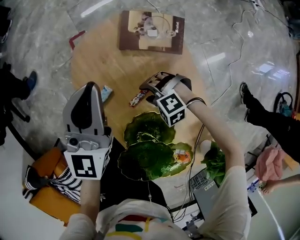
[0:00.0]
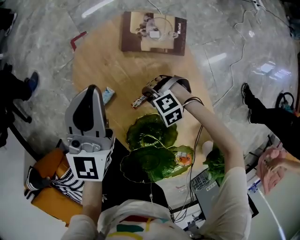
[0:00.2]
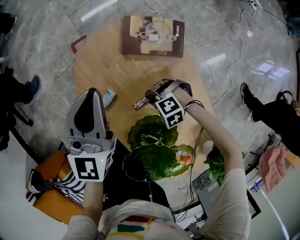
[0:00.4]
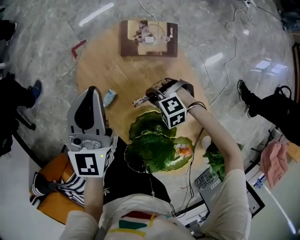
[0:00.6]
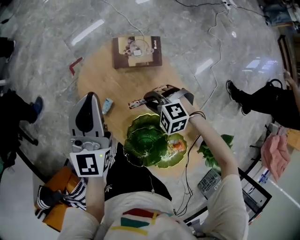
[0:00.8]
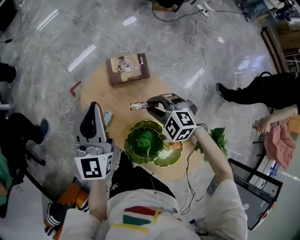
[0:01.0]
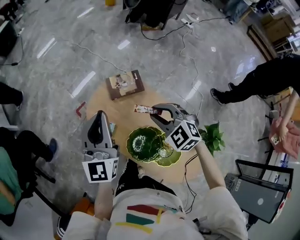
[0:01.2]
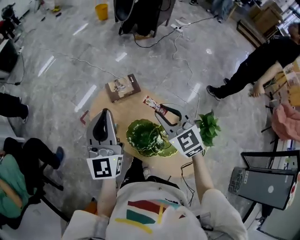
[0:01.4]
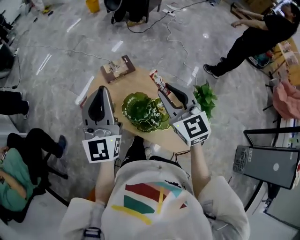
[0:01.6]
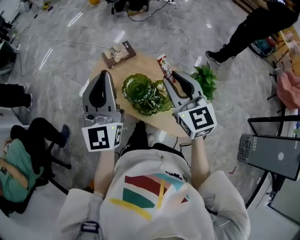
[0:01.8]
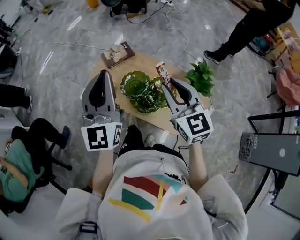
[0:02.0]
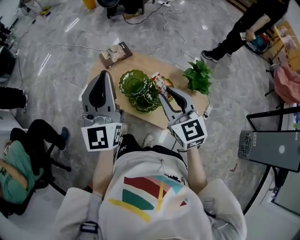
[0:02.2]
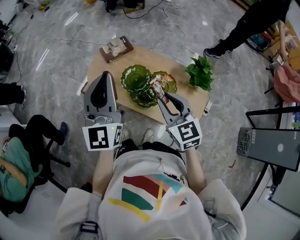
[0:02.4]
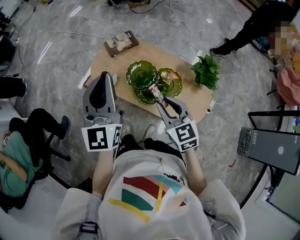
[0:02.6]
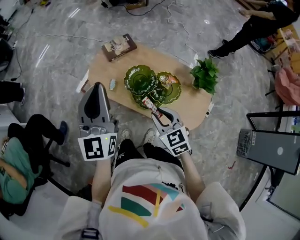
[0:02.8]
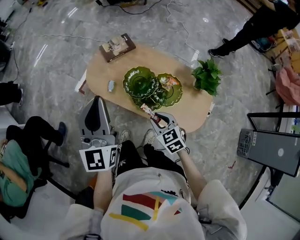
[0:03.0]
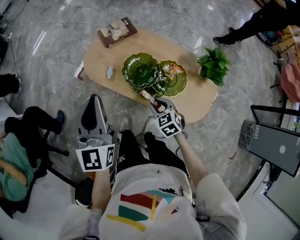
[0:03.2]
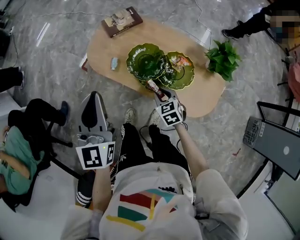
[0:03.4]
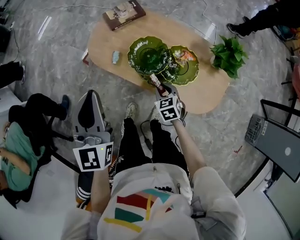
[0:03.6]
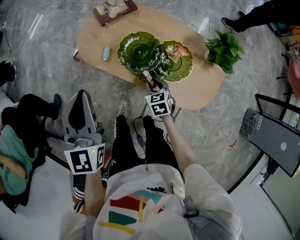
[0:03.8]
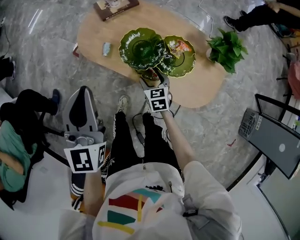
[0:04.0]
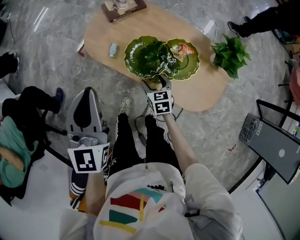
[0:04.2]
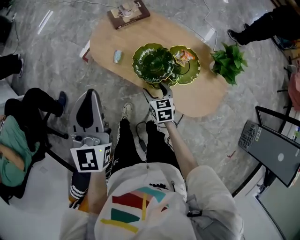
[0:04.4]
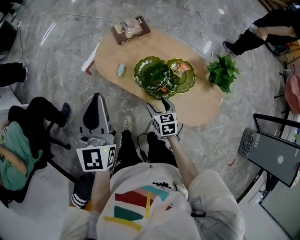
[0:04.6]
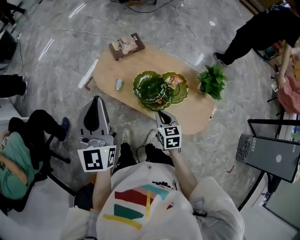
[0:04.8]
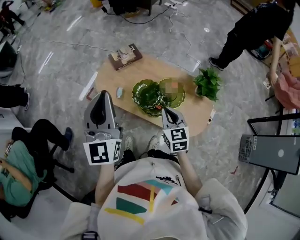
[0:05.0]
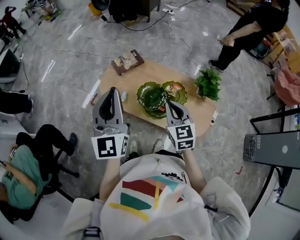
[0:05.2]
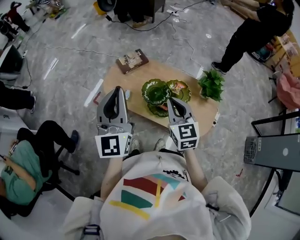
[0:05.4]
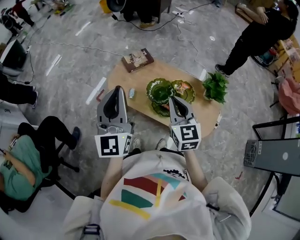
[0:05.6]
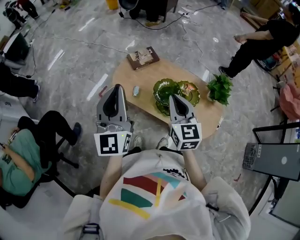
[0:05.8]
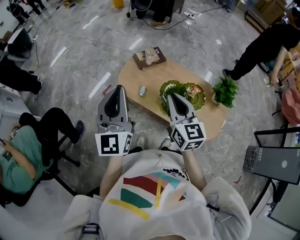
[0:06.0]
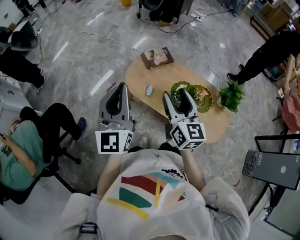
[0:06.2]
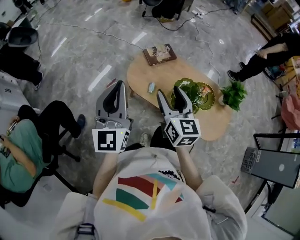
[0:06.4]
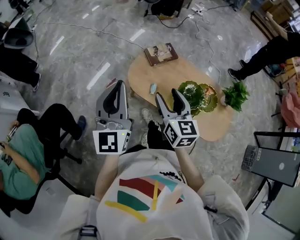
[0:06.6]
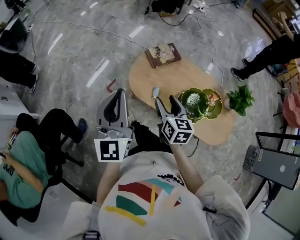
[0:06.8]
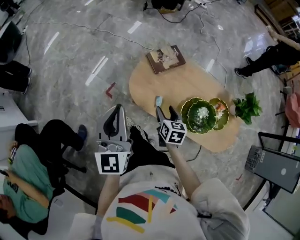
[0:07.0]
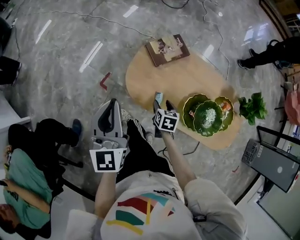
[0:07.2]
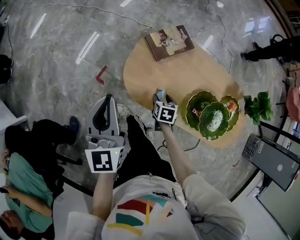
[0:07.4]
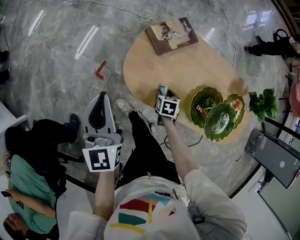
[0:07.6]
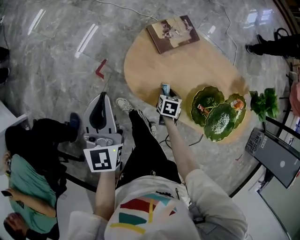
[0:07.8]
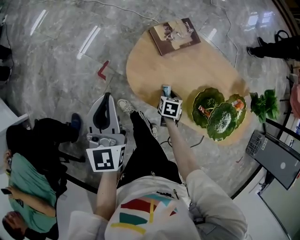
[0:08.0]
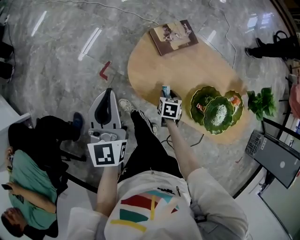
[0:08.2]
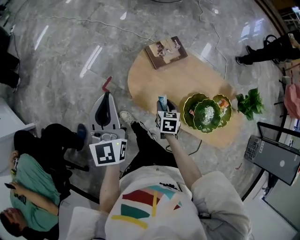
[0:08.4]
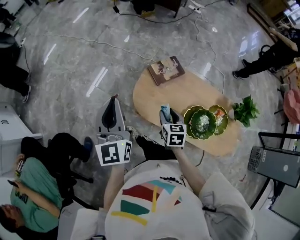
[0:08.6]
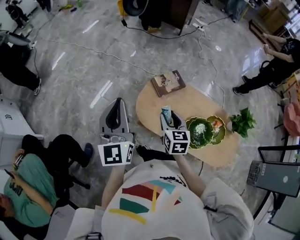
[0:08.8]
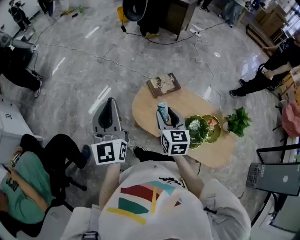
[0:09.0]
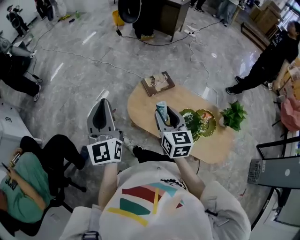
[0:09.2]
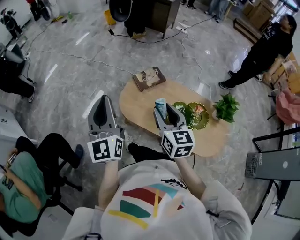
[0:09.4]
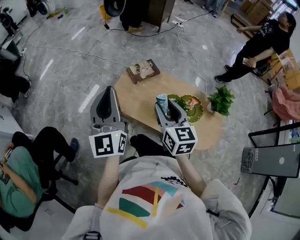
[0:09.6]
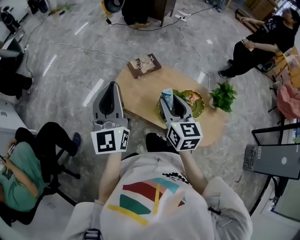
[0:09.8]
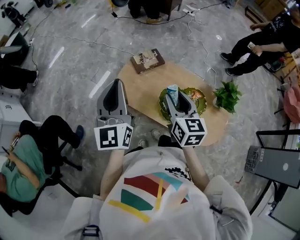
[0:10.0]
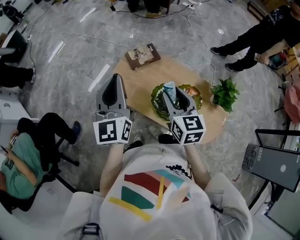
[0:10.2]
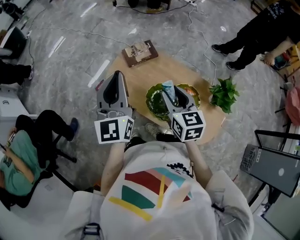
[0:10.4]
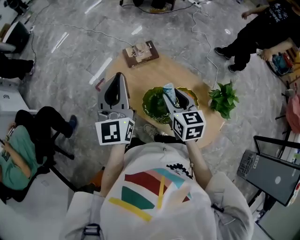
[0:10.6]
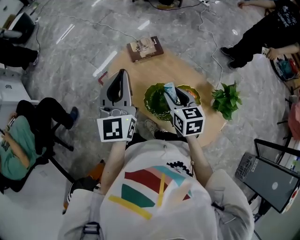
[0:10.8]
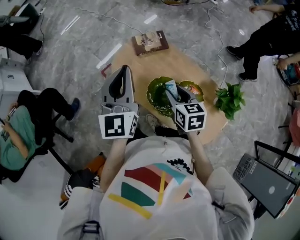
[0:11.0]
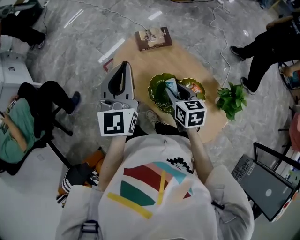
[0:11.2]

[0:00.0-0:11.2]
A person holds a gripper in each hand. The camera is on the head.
0:00.0 to 0:01.6: The right gripper shifts roughly 50 cm upward, angles its fingers upward, by some 50 degrees, and closes. The left gripper travels upward by some 35 cm, and changes its angle by some 30 degrees.
0:01.6 to 0:03.2: The right gripper is displaced downward and backward by roughly 35 cm, and points its fingers roughly 40 degrees further downward. Meanwhile the left gripper heads downward, backward and to the left, covering about 15 cm.
0:03.2 to 0:04.8: The two grippers go roughly 5 cm upward. The right gripper swivels some 30 degrees, and opens, then closes again.
0:04.8 to 0:06.4: The right gripper shifts about 30 cm upward and to the left, changes its angle by some 30 degrees, and opens, while the left gripper goes some 15 cm to the left.
0:06.4 to 0:08.0: The right gripper is displaced downward by about 50 cm, and tilts its fingers roughly 60 degrees downward; the left gripper is displaced downward and forward by roughly 35 cm.
0:08.0 to 0:09.6: The left gripper shifts approximately 35 cm upward, backward and to the right, and changes its angle by approximately 20 degrees; the right gripper shifts roughly 50 cm upward, and tips its fingers upward by approximately 50 degrees.
0:09.6 to 0:11.2: The left gripper travels to the right by some 15 cm. Meanwhile the right gripper moves downward and to the right, about 20 cm, and turns by some 30 degrees.

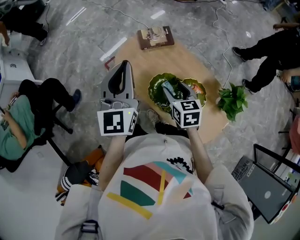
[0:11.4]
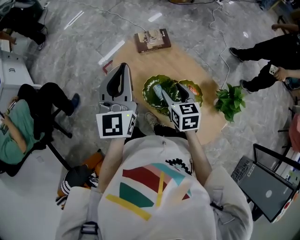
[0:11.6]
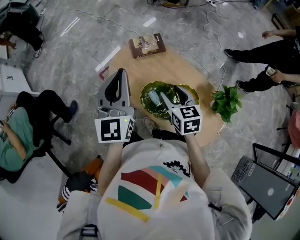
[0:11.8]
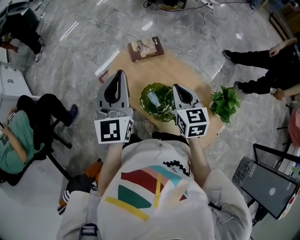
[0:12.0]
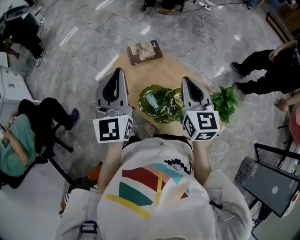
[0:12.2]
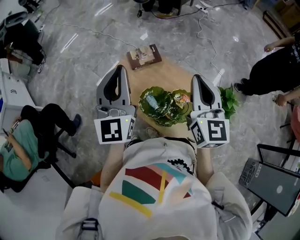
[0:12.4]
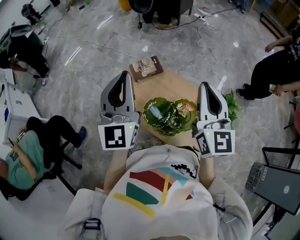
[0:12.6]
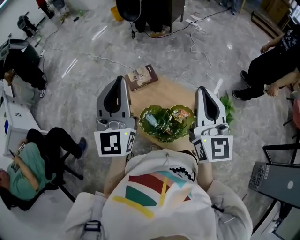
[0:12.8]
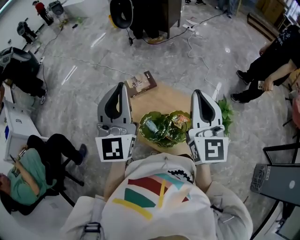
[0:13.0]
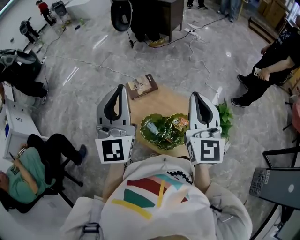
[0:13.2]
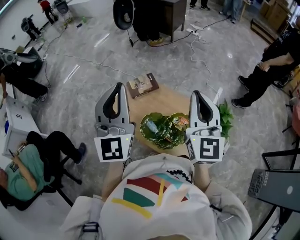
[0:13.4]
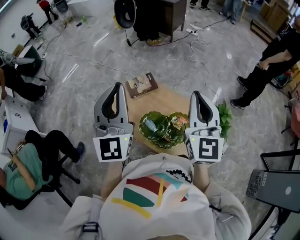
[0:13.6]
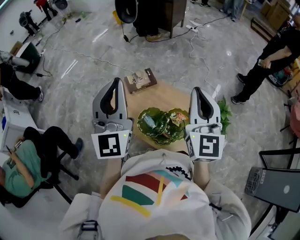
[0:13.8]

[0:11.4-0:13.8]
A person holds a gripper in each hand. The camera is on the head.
0:11.4 to 0:12.6: The right gripper heads upward and to the right, covering approximately 30 cm, points its fingers some 40 degrees further upward, and closes up. The left gripper shifts roughly 10 cm upward and to the right.
0:12.6 to 0:13.8: The grippers move only a little.

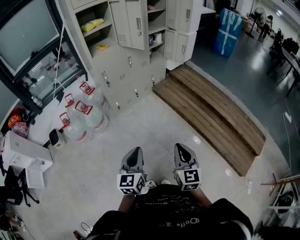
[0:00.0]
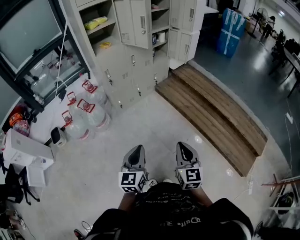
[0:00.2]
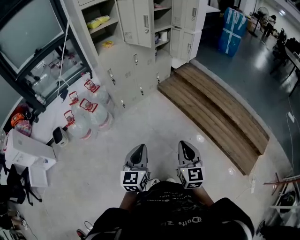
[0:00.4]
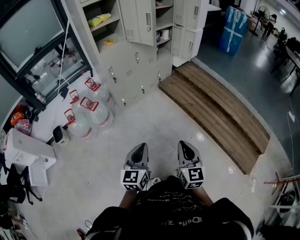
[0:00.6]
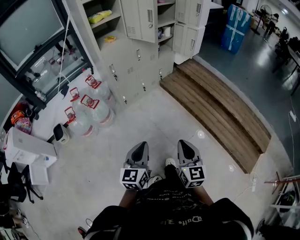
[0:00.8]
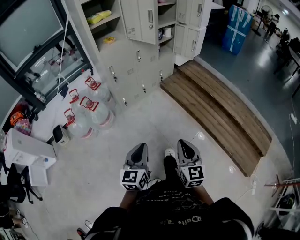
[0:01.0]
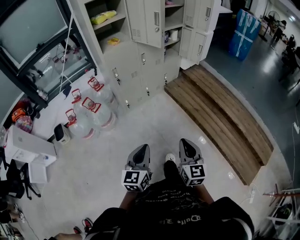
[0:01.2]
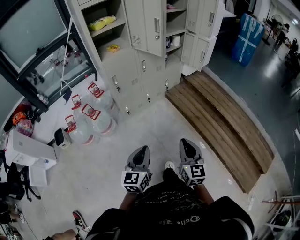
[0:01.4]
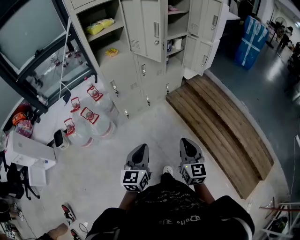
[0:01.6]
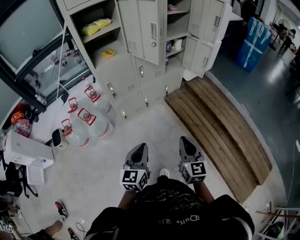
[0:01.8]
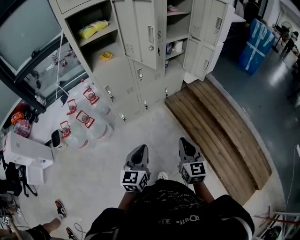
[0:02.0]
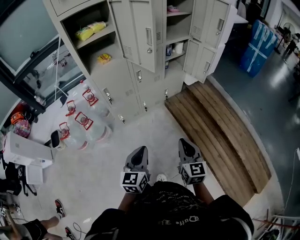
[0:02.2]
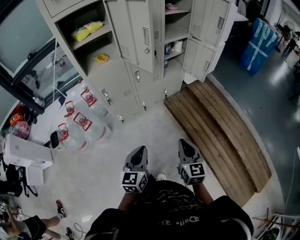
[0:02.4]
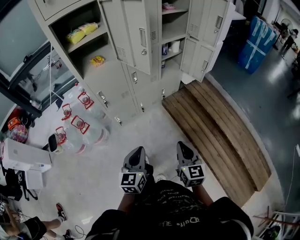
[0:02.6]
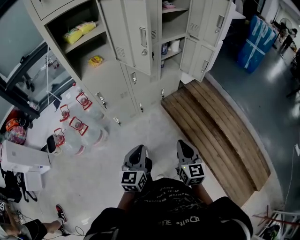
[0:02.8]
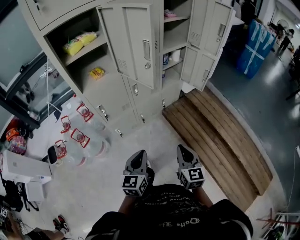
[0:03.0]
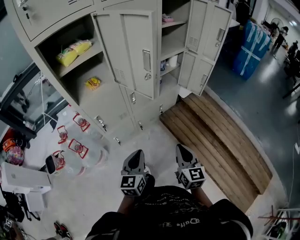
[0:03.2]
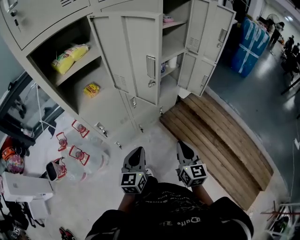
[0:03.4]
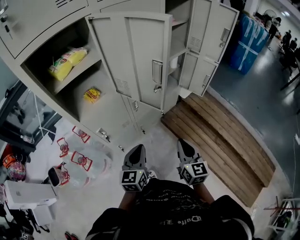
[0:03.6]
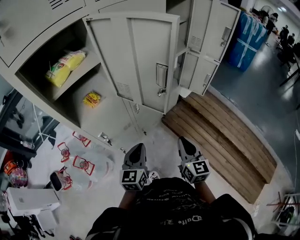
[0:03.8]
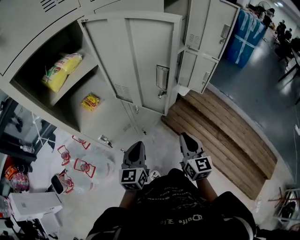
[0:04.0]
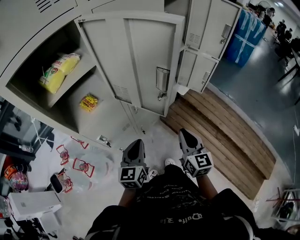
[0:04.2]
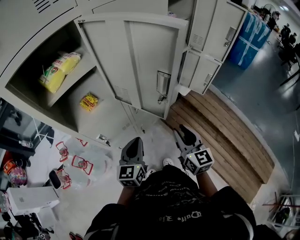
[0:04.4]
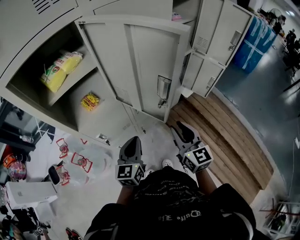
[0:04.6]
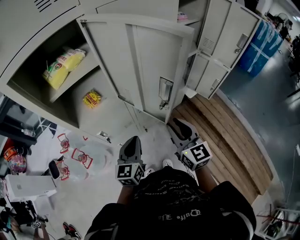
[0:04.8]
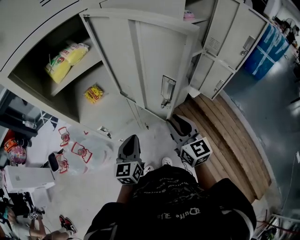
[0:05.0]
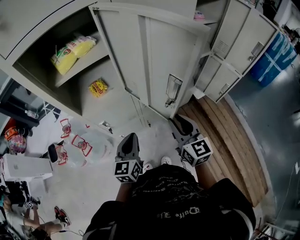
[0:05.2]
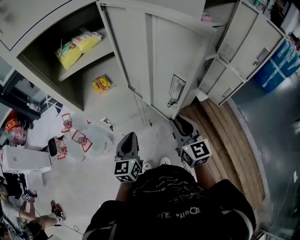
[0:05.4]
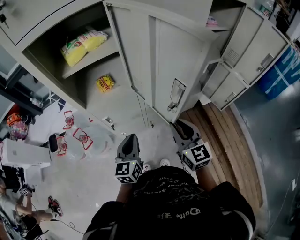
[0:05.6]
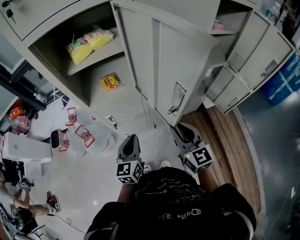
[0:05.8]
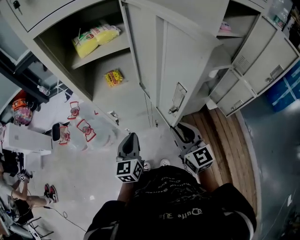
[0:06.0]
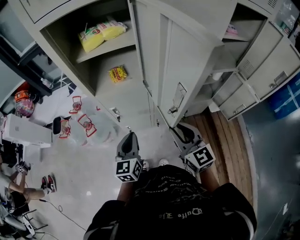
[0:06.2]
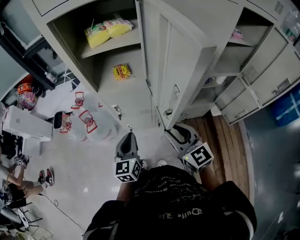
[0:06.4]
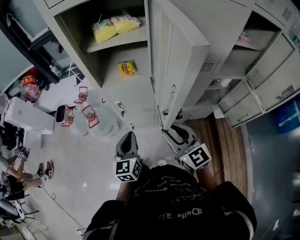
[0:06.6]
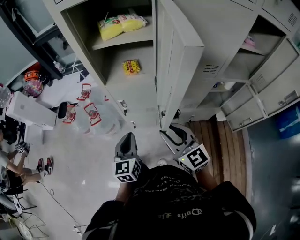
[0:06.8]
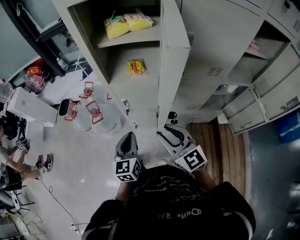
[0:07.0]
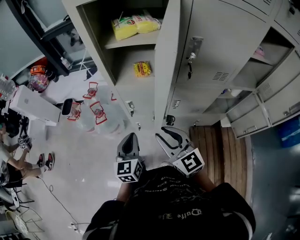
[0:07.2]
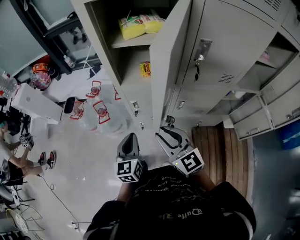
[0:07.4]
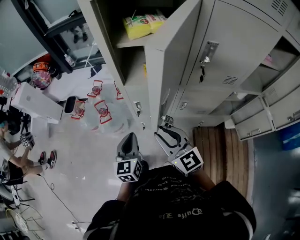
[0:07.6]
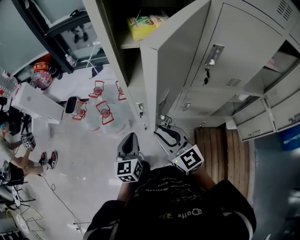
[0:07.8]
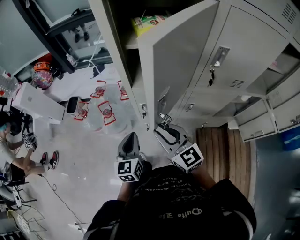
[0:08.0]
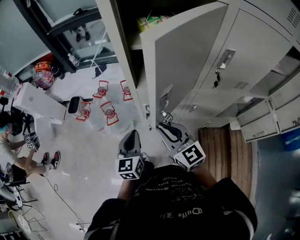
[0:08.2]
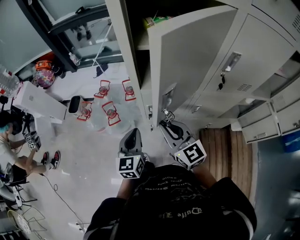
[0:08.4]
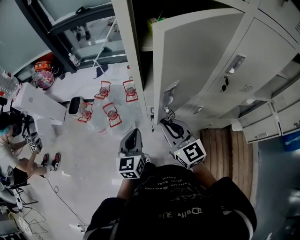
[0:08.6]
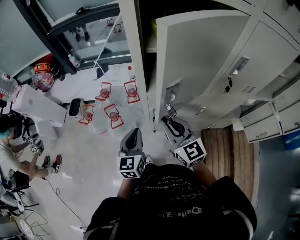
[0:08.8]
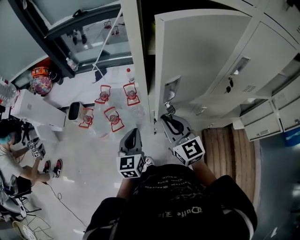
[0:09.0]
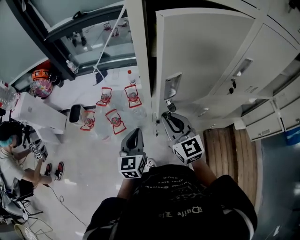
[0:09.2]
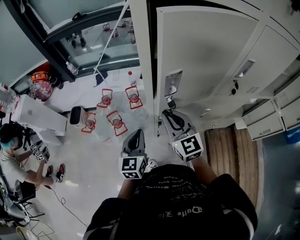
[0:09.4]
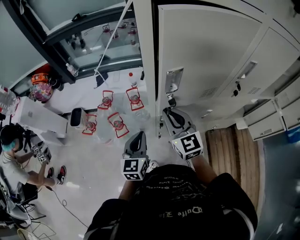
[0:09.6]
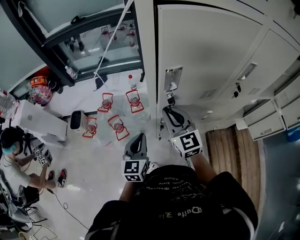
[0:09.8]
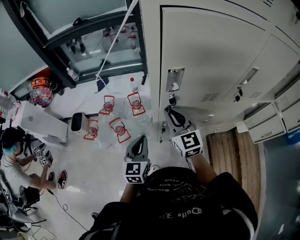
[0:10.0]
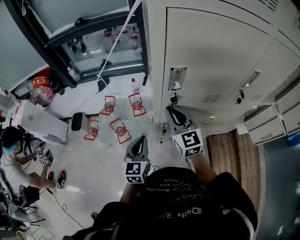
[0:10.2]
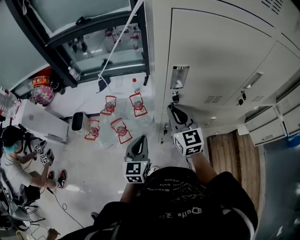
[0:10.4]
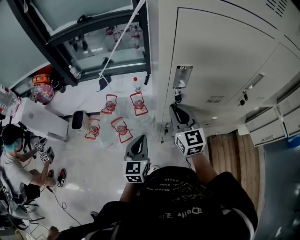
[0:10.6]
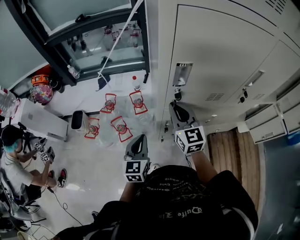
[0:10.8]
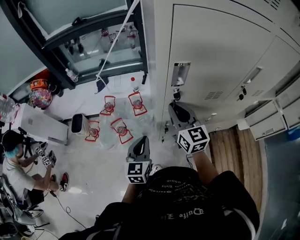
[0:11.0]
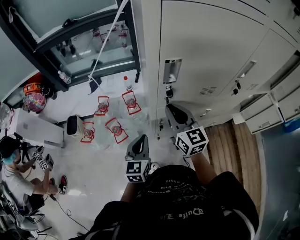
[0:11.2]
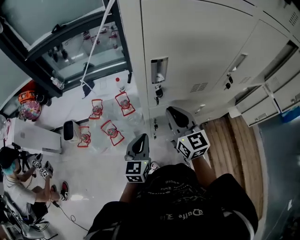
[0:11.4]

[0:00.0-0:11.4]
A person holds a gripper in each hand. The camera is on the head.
0:00.0 to 0:01.4: The grippers both shift forward by approximately 15 cm.
0:01.4 to 0:02.8: The grippers both shift forward by roughly 20 cm.
0:02.8 to 0:04.2: Both grippers travel together forward, some 25 cm.
0:04.2 to 0:05.6: The right gripper shifts by about 10 cm, and changes its angle by approximately 30 degrees; the left gripper turns by approximately 30 degrees.
0:05.6 to 0:07.2: The right gripper moves about 15 cm, and swivels approximately 40 degrees. Meanwhile the left gripper changes place by about 10 cm, and changes its angle by approximately 20 degrees.
0:07.2 to 0:08.6: Both grippers move forward and to the left, some 15 cm. The right gripper closes its fingers.
0:08.6 to 0:10.0: The right gripper goes roughly 15 cm forward; the left gripper shifts about 5 cm forward.
0:10.0 to 0:11.4: The right gripper changes place by approximately 5 cm.
